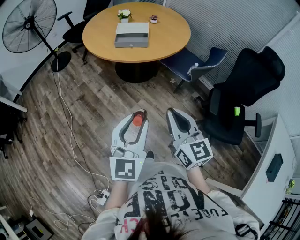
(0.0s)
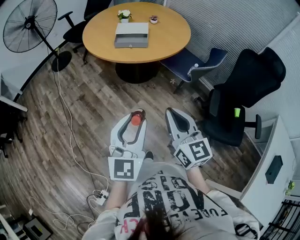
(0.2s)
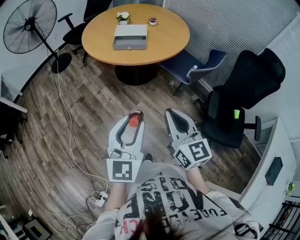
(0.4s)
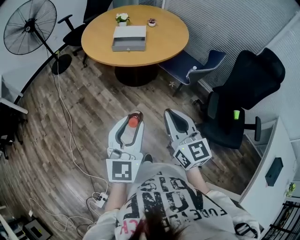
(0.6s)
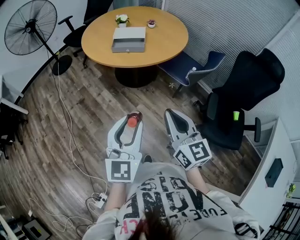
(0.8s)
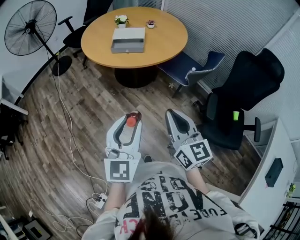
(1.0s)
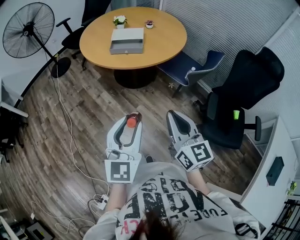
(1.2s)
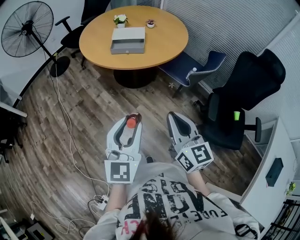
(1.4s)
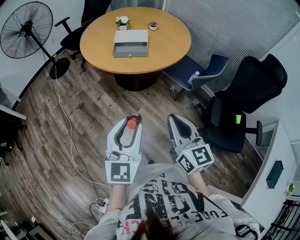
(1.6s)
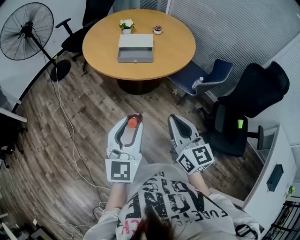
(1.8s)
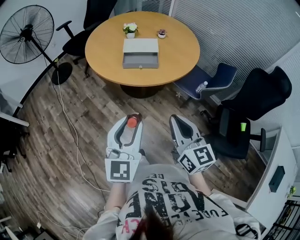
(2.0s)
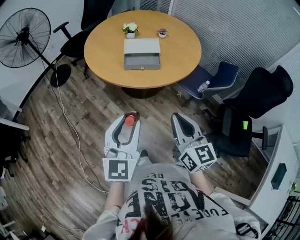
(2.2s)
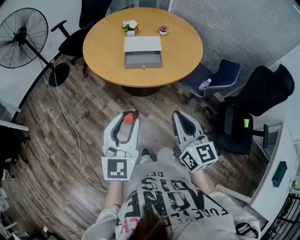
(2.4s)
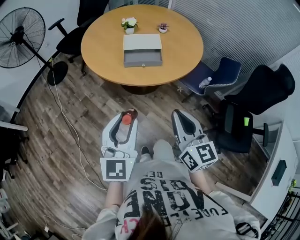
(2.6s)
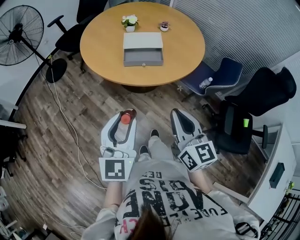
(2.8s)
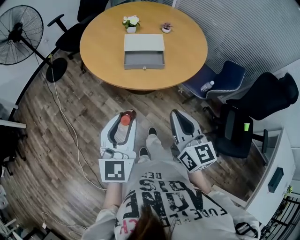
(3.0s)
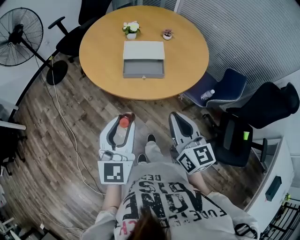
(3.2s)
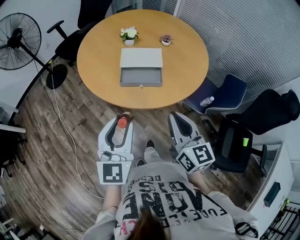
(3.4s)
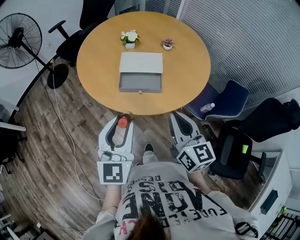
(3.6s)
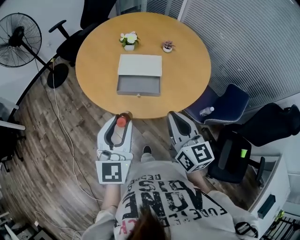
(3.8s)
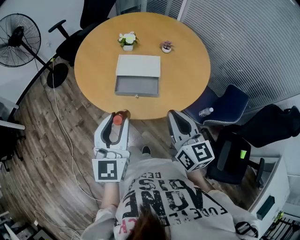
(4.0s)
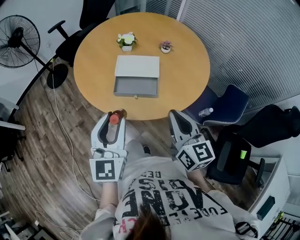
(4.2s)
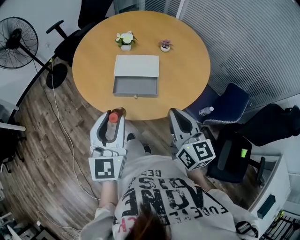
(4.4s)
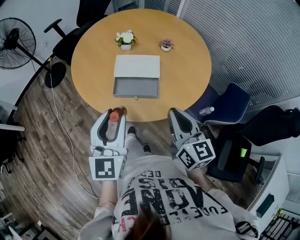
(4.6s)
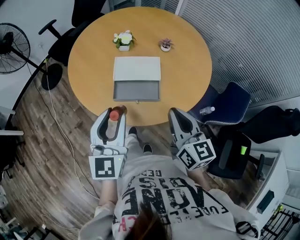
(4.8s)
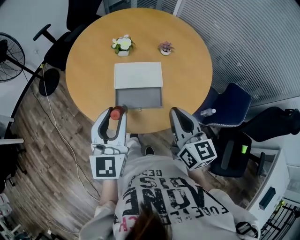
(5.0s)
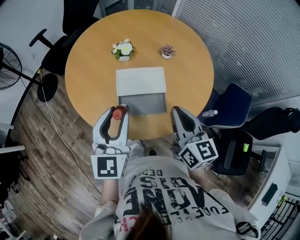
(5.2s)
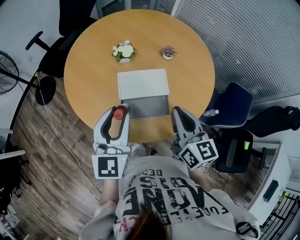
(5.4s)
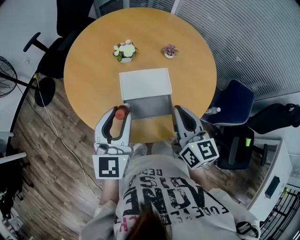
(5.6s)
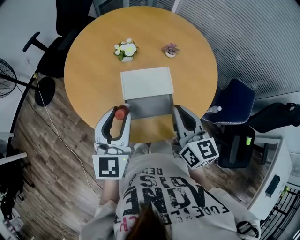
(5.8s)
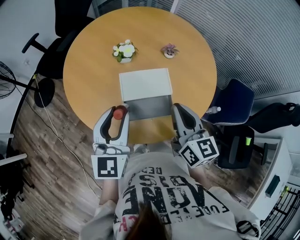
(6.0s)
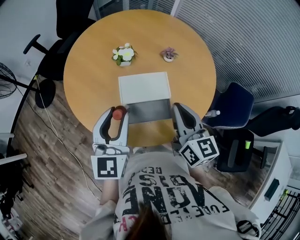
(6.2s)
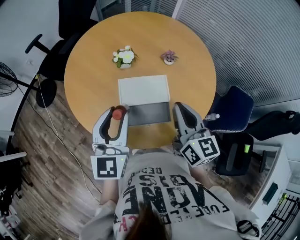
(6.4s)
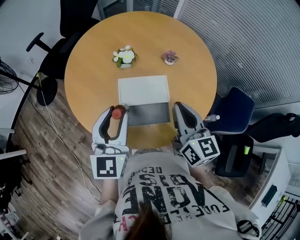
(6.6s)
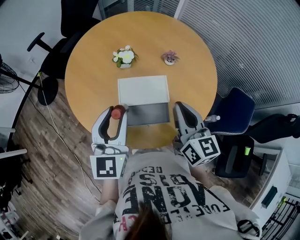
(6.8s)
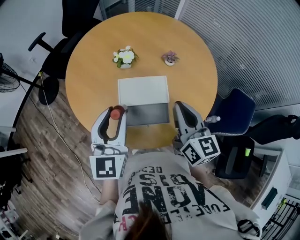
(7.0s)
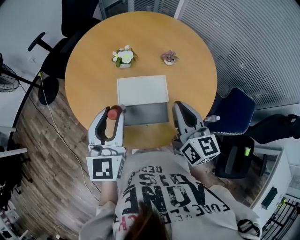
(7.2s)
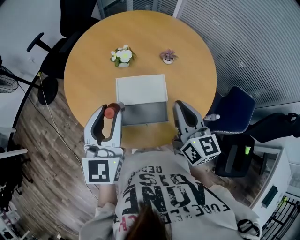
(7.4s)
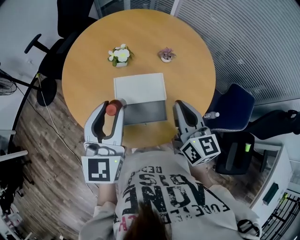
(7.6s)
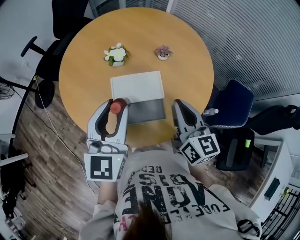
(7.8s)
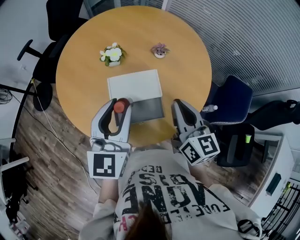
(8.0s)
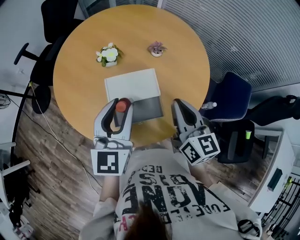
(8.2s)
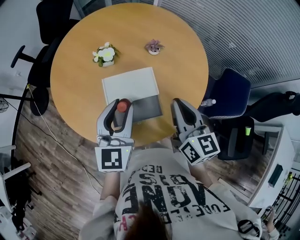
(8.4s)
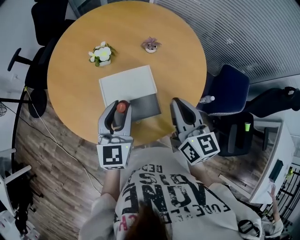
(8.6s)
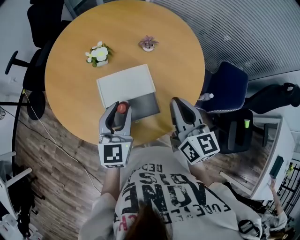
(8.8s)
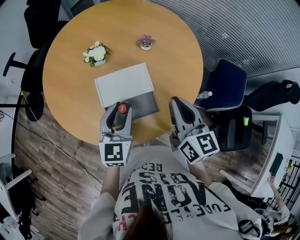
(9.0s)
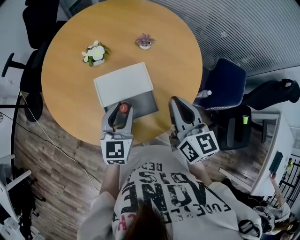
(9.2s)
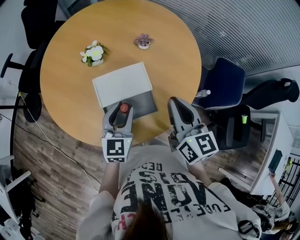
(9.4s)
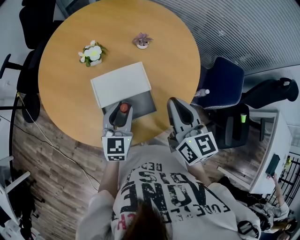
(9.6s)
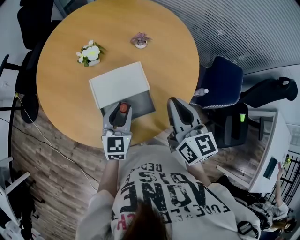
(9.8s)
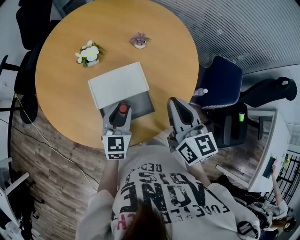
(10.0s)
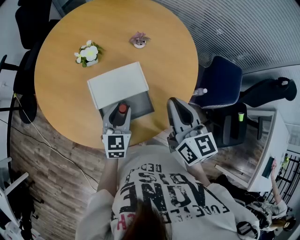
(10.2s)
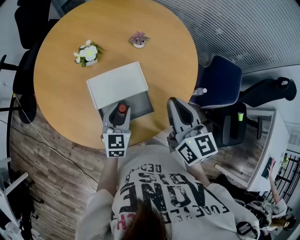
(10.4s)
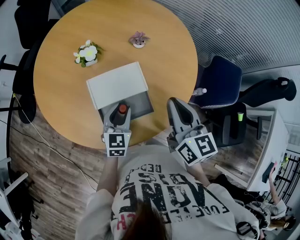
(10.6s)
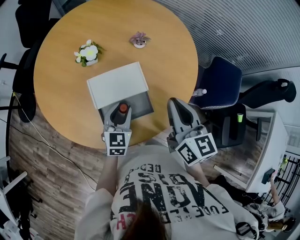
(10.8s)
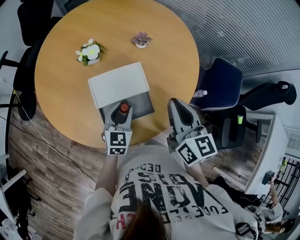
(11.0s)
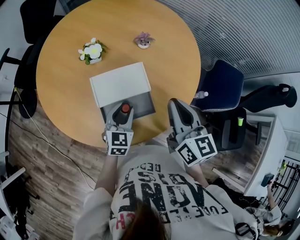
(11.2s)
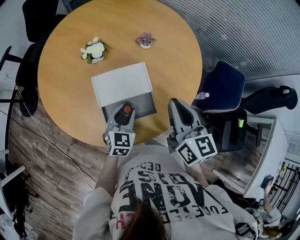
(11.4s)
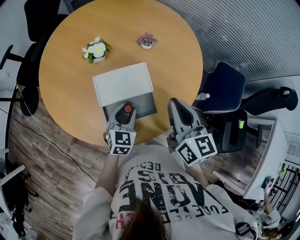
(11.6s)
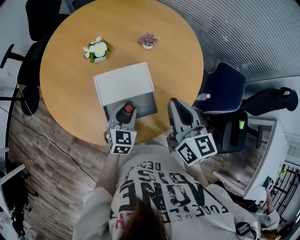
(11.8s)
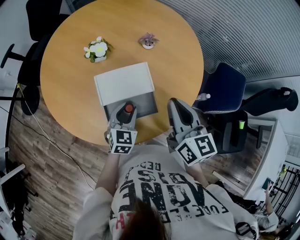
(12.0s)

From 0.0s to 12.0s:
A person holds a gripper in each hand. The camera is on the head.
From 0.0s to 1.6s: Both grippers travel together forward, approximately 5 cm.
From 1.6s to 3.0s: The grippers both shift forward and to the left by roughly 20 cm.
From 3.0s to 4.4s: The left gripper goes some 15 cm forward. The right gripper shifts some 20 cm forward and to the right.
From 4.4s to 6.0s: The left gripper travels forward by approximately 20 cm; the right gripper goes approximately 15 cm forward and to the left.
From 6.0s to 7.6s: The left gripper is displaced upward by some 5 cm. Meanwhile the right gripper changes place by some 5 cm.
From 7.6s to 9.0s: The left gripper heads downward and to the right, covering some 15 cm.
From 9.0s to 10.4s: The left gripper is displaced downward by approximately 10 cm.
From 10.4s to 12.0s: The grippers stay close to where they were, moving slightly.

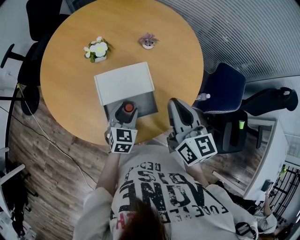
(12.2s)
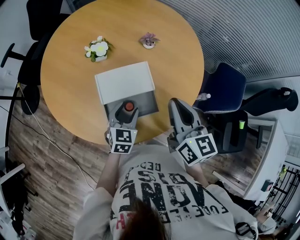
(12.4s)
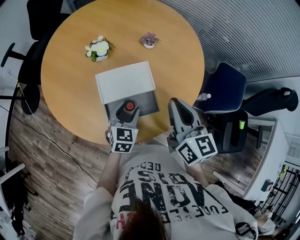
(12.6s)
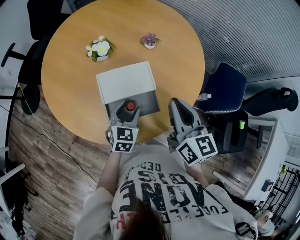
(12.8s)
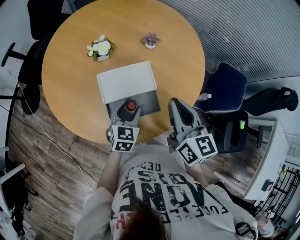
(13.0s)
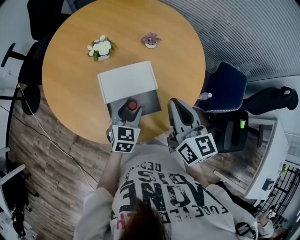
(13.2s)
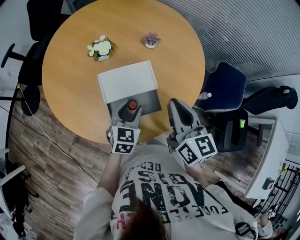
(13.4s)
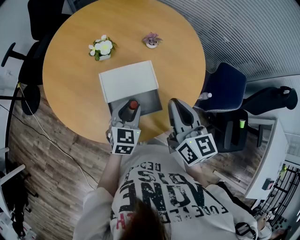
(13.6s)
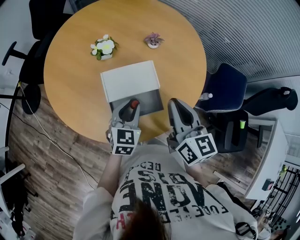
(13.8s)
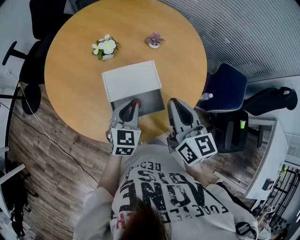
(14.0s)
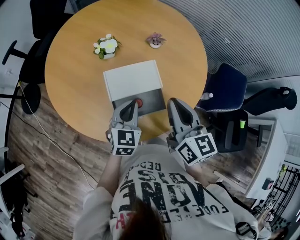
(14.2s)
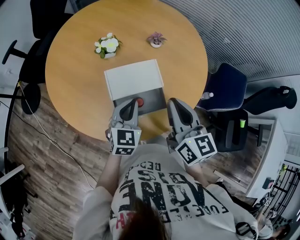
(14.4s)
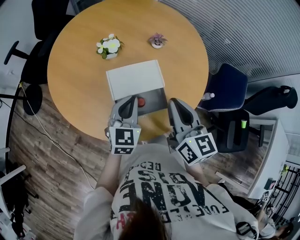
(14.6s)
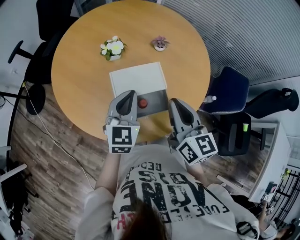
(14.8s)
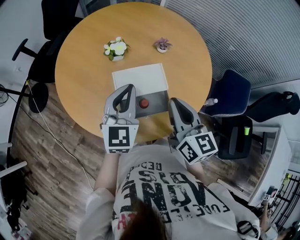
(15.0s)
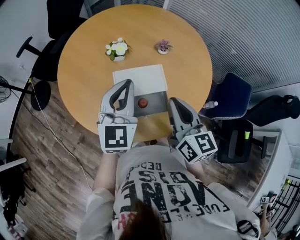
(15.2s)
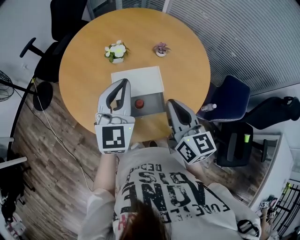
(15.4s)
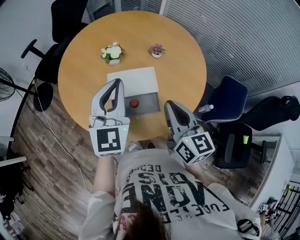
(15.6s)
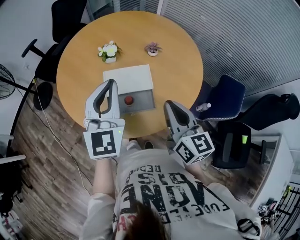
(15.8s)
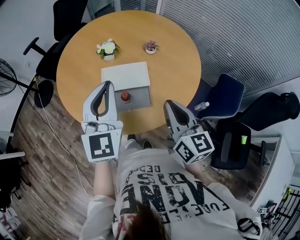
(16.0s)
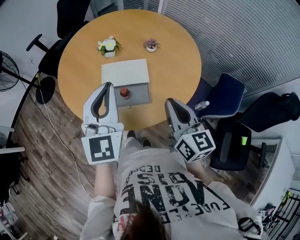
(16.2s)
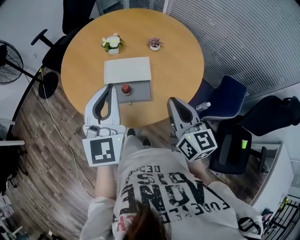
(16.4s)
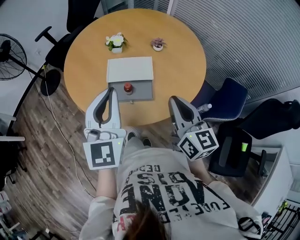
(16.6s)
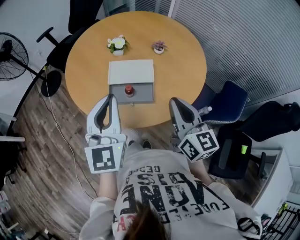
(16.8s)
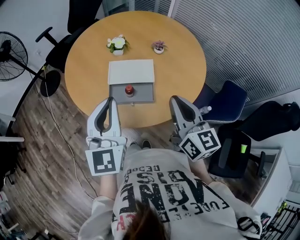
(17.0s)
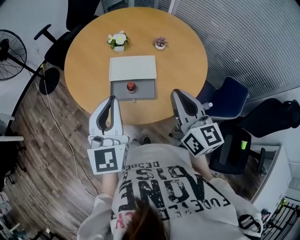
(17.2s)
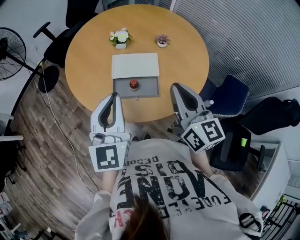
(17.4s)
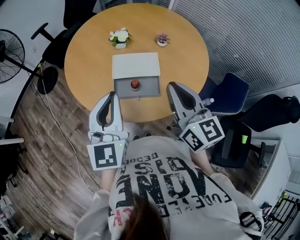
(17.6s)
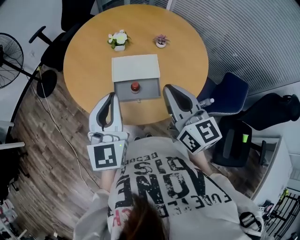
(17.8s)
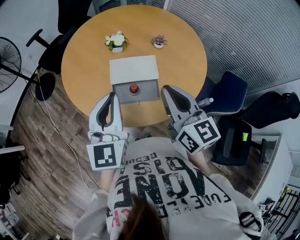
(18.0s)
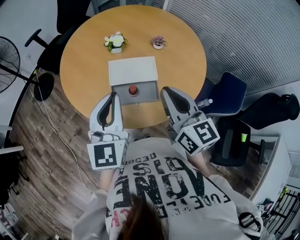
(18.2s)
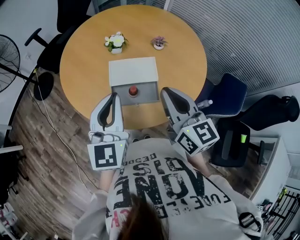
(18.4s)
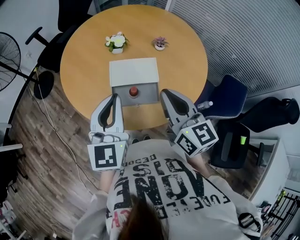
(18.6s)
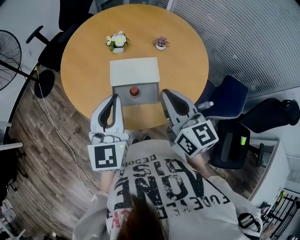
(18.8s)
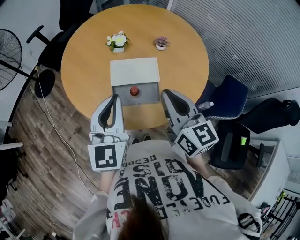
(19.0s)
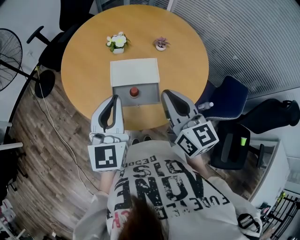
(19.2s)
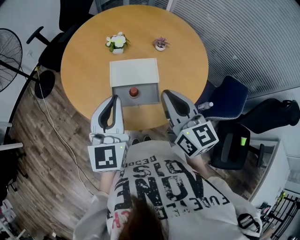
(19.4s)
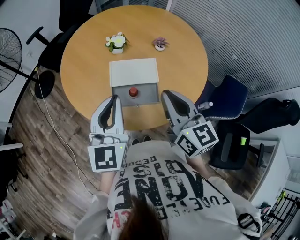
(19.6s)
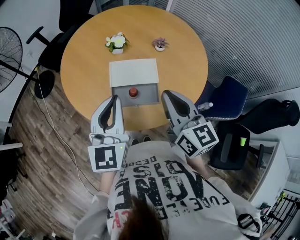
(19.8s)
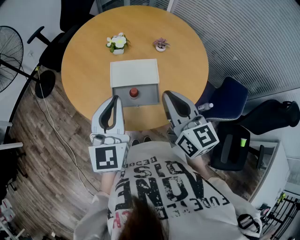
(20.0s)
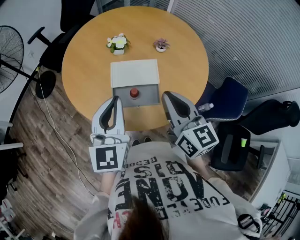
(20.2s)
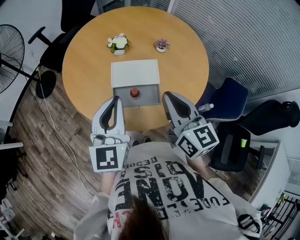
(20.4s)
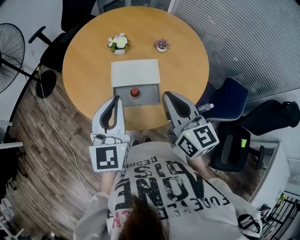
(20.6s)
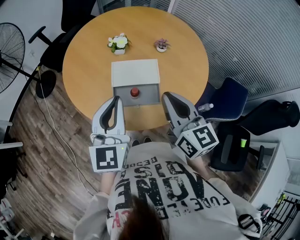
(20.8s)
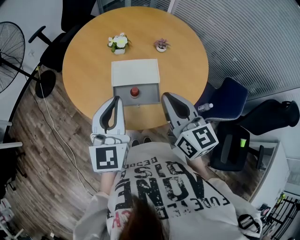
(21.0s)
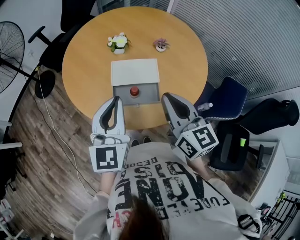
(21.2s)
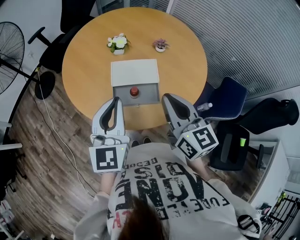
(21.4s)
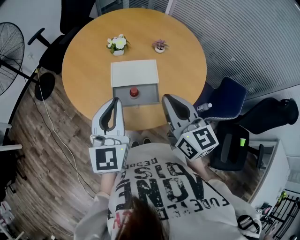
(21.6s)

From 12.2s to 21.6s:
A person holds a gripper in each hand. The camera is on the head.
From 12.2s to 13.8s: The left gripper shifts roughly 5 cm upward, and closes up.
From 13.8s to 15.4s: The left gripper shifts approximately 20 cm upward, rotates approximately 30 degrees, and closes.
From 15.4s to 17.0s: The right gripper shifts roughly 10 cm backward and to the right. Meanwhile the left gripper goes about 15 cm backward.
From 17.0s to 18.4s: The left gripper goes some 5 cm forward, while the right gripper shifts some 5 cm to the left.
From 18.4s to 20.0s: The two grippers keep their place.
From 20.0s to 21.6s: The grippers move only a little.

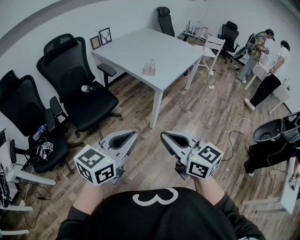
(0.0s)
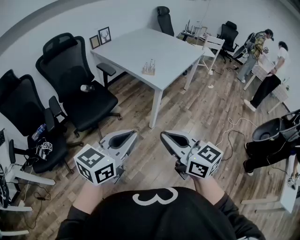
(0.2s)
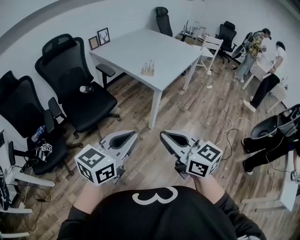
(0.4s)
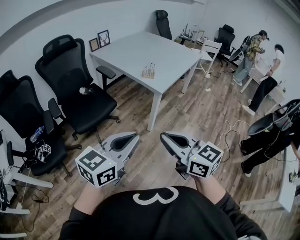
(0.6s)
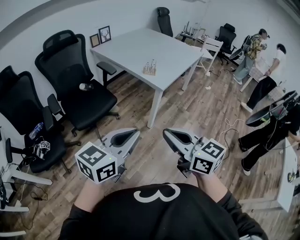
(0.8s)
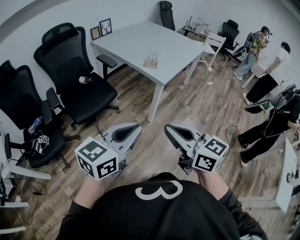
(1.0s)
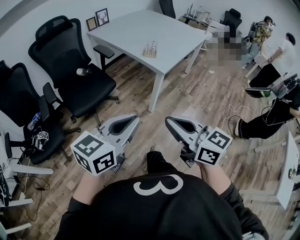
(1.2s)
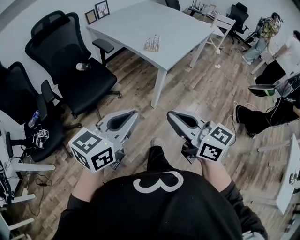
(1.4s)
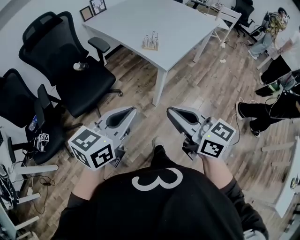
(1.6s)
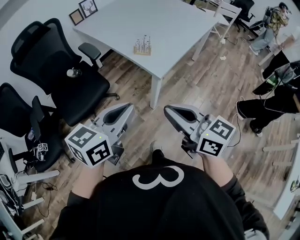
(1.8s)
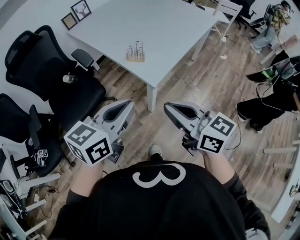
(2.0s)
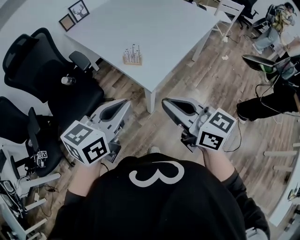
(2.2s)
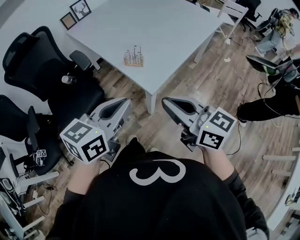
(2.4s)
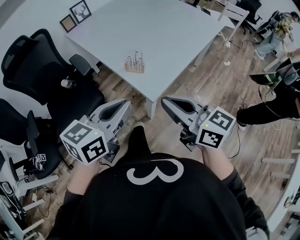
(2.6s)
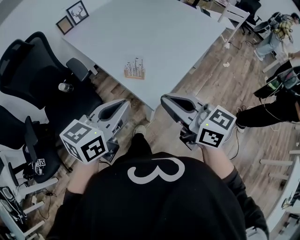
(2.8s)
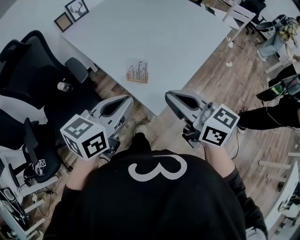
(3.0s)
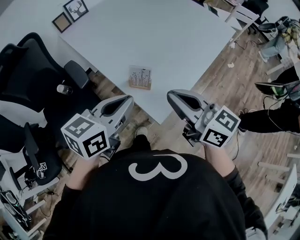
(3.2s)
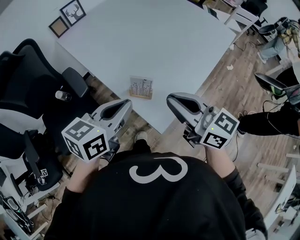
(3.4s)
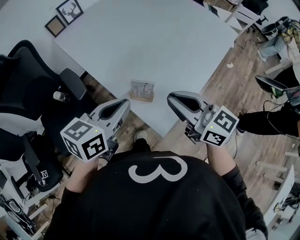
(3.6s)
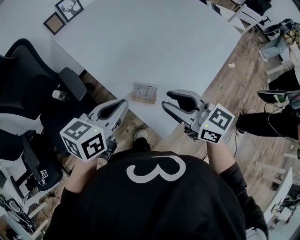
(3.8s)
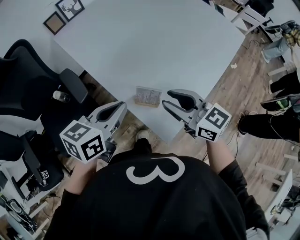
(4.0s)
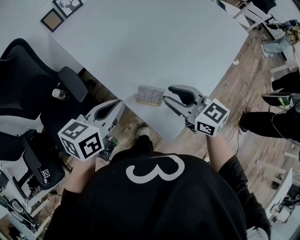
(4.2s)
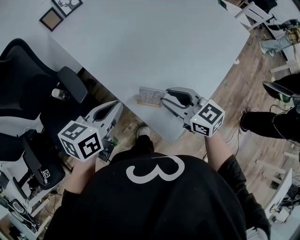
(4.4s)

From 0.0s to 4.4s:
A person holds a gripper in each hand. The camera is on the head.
From 0.0s to 1.4s: The grippers both shift forward by roughly 5 cm.
From 1.4s to 3.0s: Both grippers are carried forward, approximately 40 cm.
From 3.0s to 4.4s: The right gripper shifts about 20 cm forward and downward, and opens. Meanwhile the left gripper is displaced forward, downward and to the left by approximately 20 cm.
